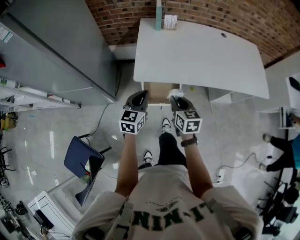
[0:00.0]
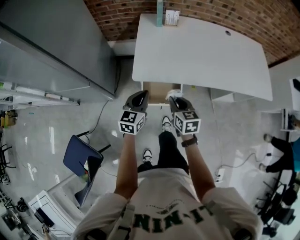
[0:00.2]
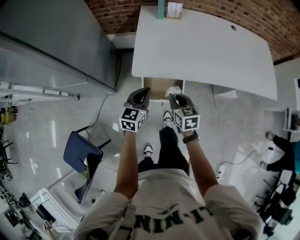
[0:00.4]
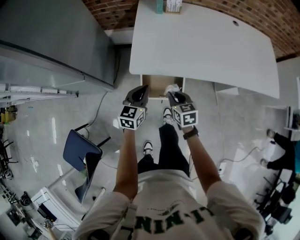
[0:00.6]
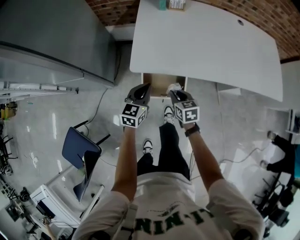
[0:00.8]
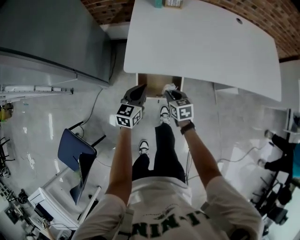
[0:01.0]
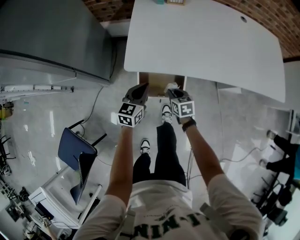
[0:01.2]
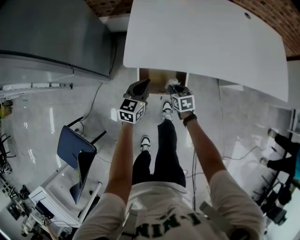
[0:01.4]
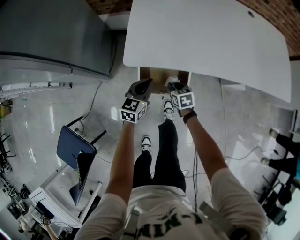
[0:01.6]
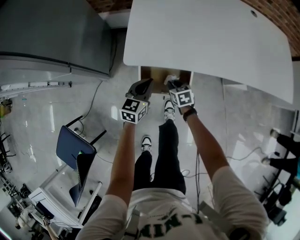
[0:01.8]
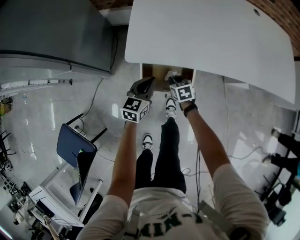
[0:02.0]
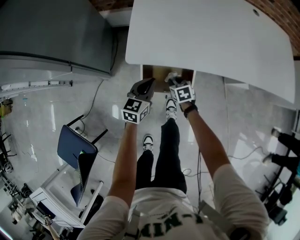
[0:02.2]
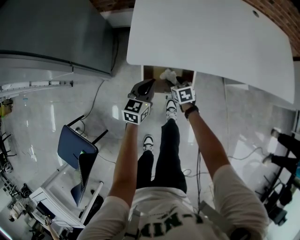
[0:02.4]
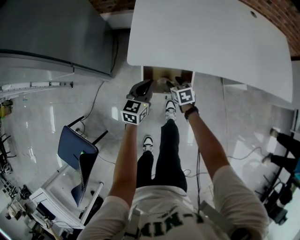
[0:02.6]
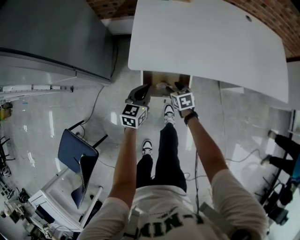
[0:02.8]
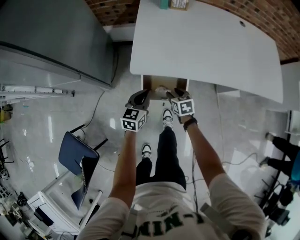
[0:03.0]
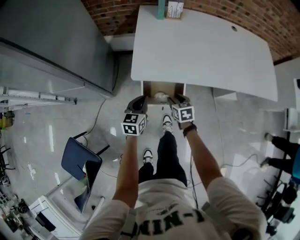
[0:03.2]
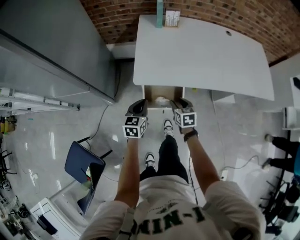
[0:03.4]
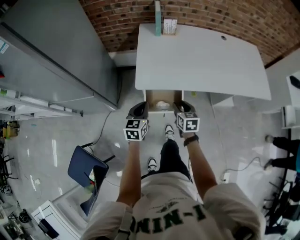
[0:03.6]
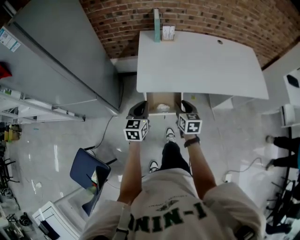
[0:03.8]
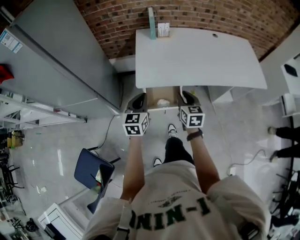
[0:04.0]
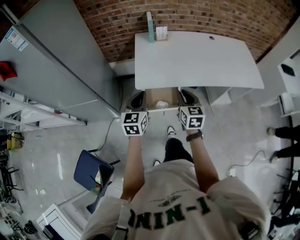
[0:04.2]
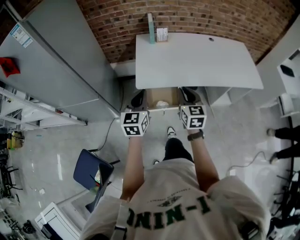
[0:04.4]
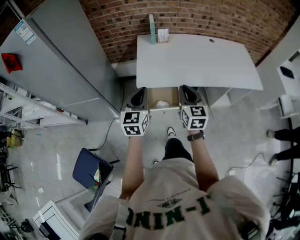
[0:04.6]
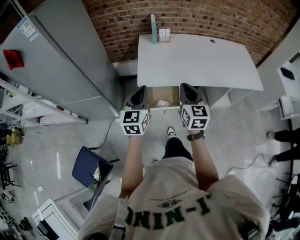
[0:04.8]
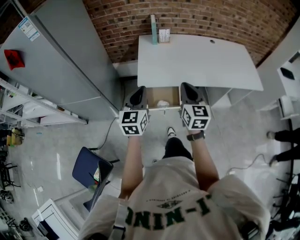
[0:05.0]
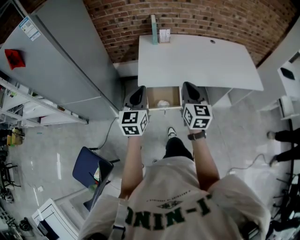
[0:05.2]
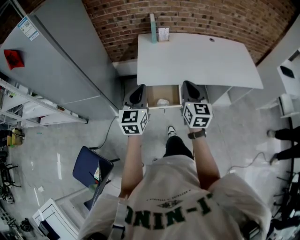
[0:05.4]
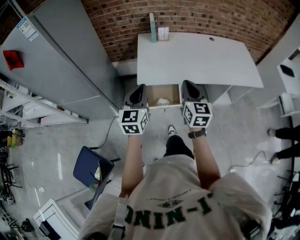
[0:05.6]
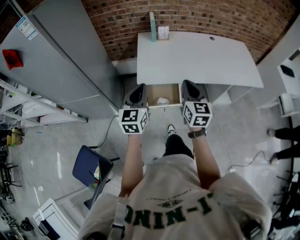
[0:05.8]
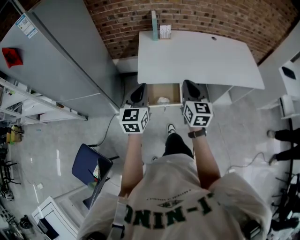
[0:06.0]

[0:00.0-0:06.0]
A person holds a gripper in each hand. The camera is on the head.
0:00.0 to 0:01.6: The two grippers go roughly 25 cm downward. The right gripper turns by about 30 degrees.
0:01.6 to 0:03.0: The right gripper moves upward, some 5 cm, and opens.
0:03.0 to 0:04.4: The grippers both shift upward by approximately 30 cm. The right gripper points its fingers approximately 40 degrees further upward, and closes.
0:04.4 to 0:06.0: The right gripper shifts approximately 5 cm upward.

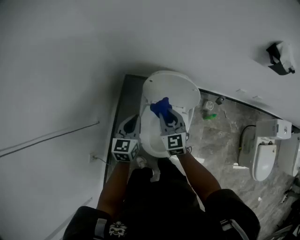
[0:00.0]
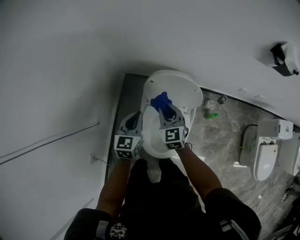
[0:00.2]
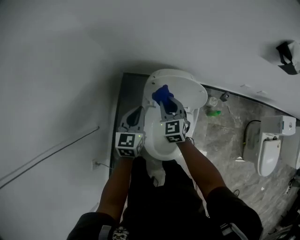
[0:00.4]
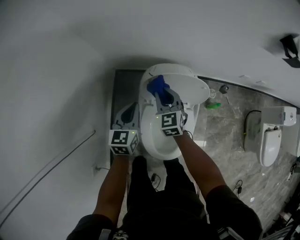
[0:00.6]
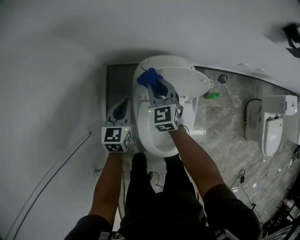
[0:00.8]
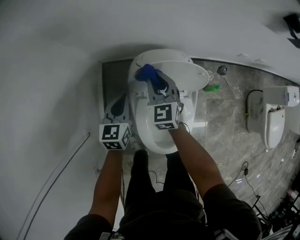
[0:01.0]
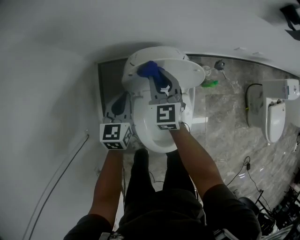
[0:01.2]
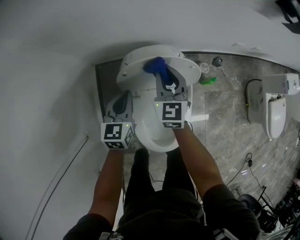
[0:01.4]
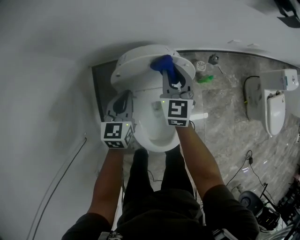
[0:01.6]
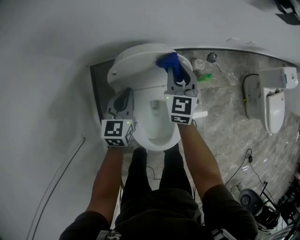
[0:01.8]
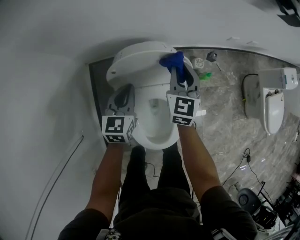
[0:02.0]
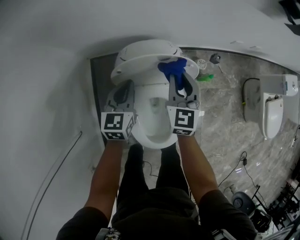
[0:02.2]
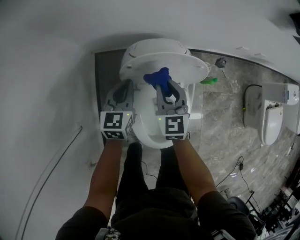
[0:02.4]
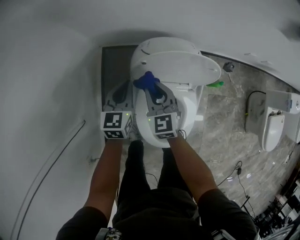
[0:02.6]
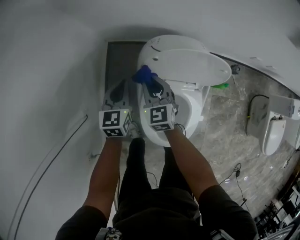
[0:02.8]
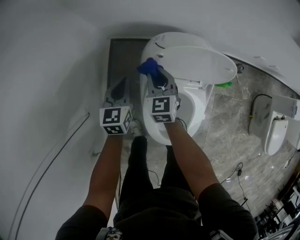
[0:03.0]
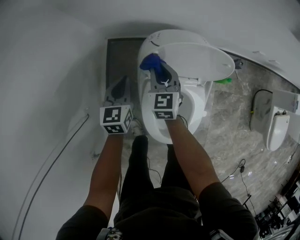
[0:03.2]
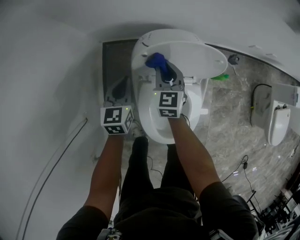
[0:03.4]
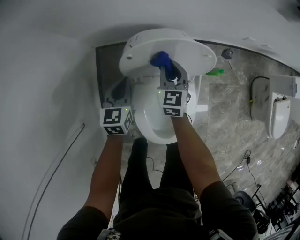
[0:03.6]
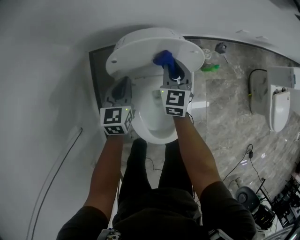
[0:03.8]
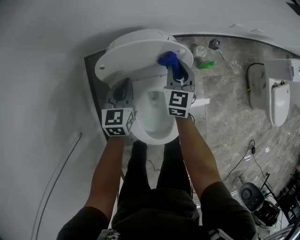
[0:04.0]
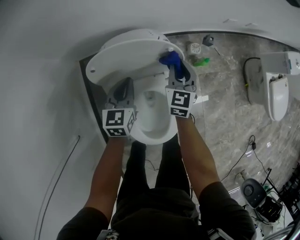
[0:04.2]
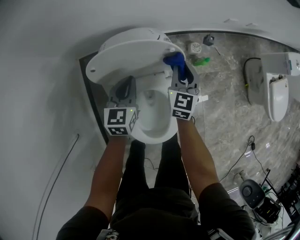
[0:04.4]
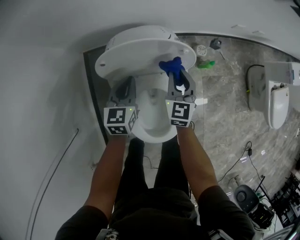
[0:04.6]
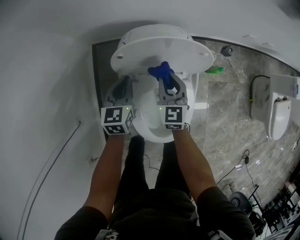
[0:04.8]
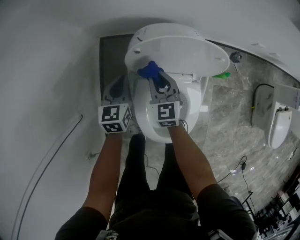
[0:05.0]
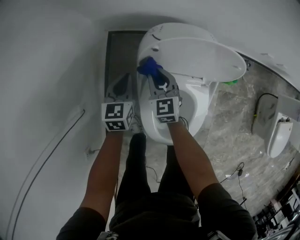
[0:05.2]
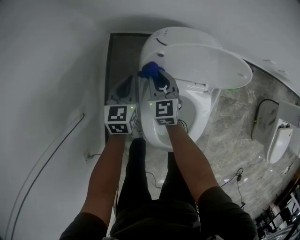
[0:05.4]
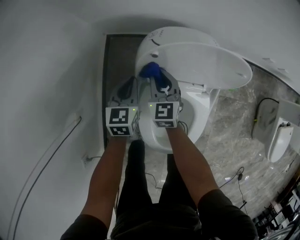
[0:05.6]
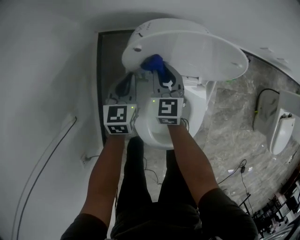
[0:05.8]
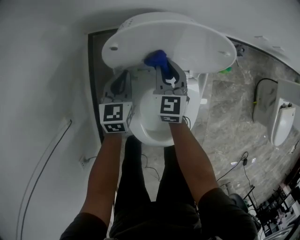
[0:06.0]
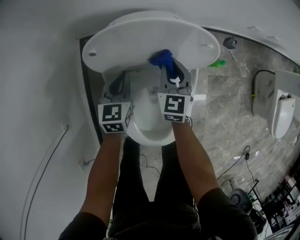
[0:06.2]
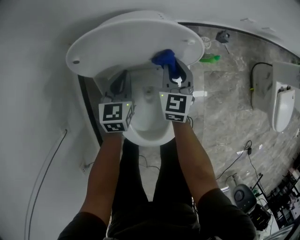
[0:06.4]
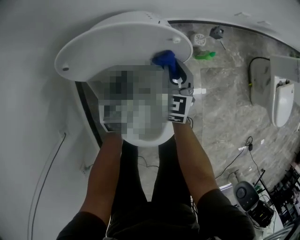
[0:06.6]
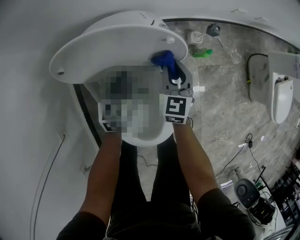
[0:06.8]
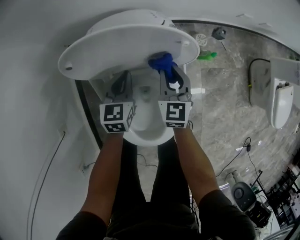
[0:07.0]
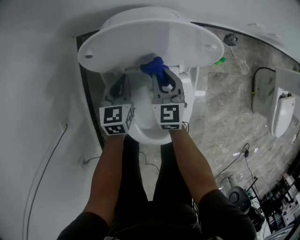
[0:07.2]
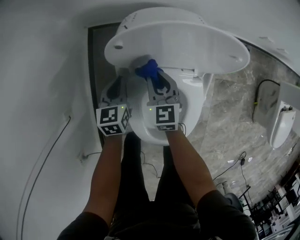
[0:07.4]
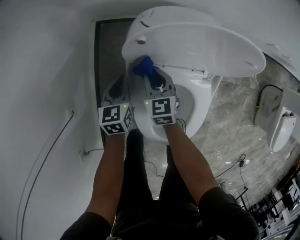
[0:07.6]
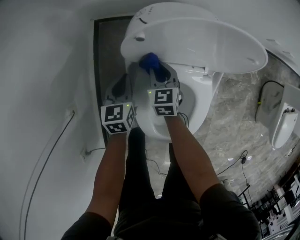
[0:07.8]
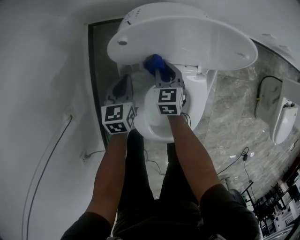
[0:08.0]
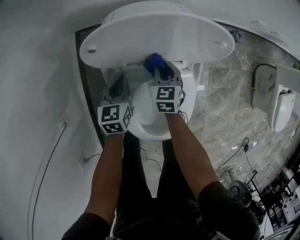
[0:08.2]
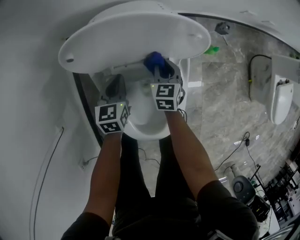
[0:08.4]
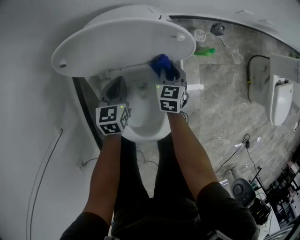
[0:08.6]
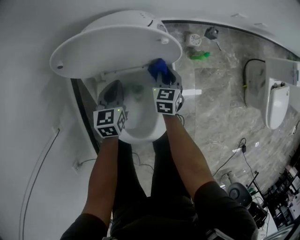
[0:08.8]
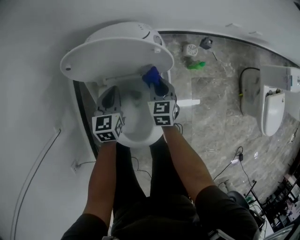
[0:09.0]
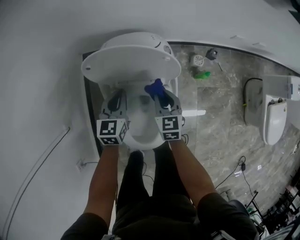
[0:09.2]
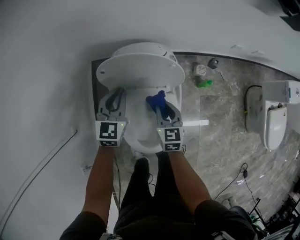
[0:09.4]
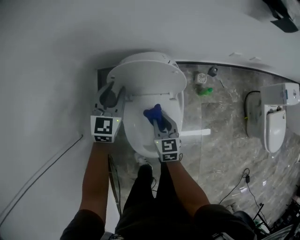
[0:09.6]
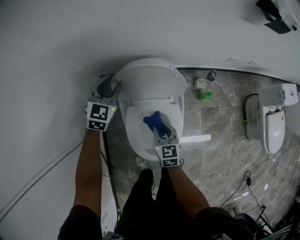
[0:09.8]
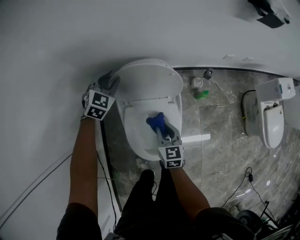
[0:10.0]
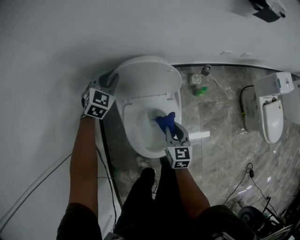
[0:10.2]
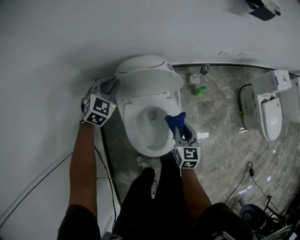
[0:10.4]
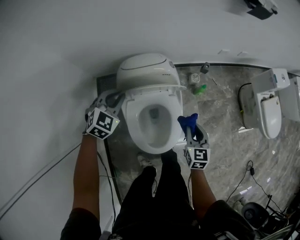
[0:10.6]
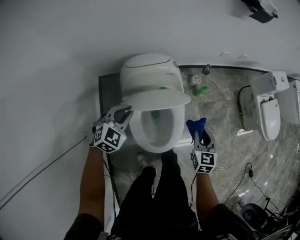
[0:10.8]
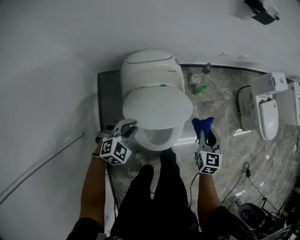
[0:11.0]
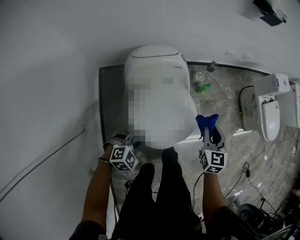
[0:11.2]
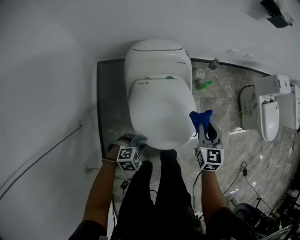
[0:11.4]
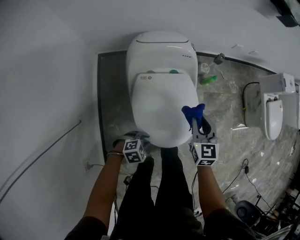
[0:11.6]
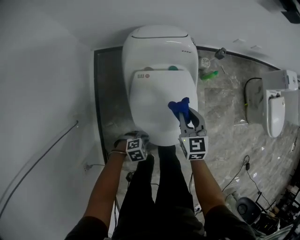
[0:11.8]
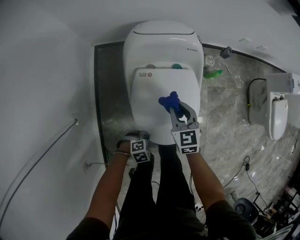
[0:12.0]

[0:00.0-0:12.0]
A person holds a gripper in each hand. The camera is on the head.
0:00.0 to 0:01.6: The right gripper is displaced forward, to the right and downward by some 20 cm, and turns by some 30 degrees. Meanwhile the left gripper shifts about 20 cm forward and downward.
0:01.6 to 0:03.0: Both grippers travel together to the left and downward, roughly 20 cm. The right gripper rotates about 20 degrees.
0:03.0 to 0:04.4: The left gripper shifts by approximately 20 cm. Meanwhile the right gripper shifts by approximately 30 cm, and turns by roughly 30 degrees.
0:04.4 to 0:06.0: The right gripper swivels about 20 degrees. Meanwhile the left gripper ends up approximately 15 cm from where it was.
0:06.0 to 0:07.6: The right gripper moves approximately 15 cm, while the left gripper moves roughly 10 cm.
0:07.6 to 0:09.0: The two grippers go about 20 cm to the right.
0:09.0 to 0:10.4: The left gripper shifts about 20 cm upward, twists some 50 degrees clockwise, seen from behind, and opens, then closes once more; the right gripper heads upward and backward, covering roughly 20 cm.
0:10.4 to 0:12.0: The right gripper moves roughly 15 cm, and swivels roughly 20 degrees. The left gripper shifts by approximately 50 cm, and changes its angle by roughly 50 degrees.

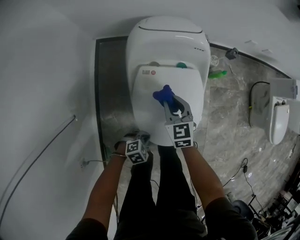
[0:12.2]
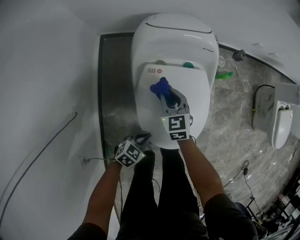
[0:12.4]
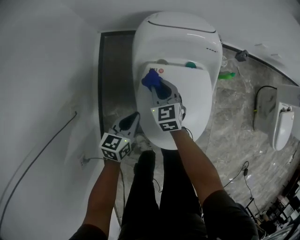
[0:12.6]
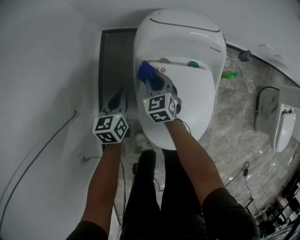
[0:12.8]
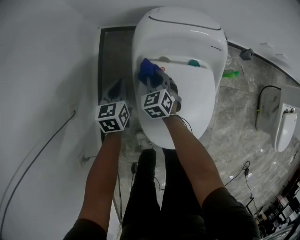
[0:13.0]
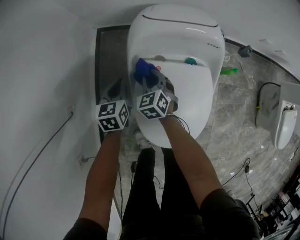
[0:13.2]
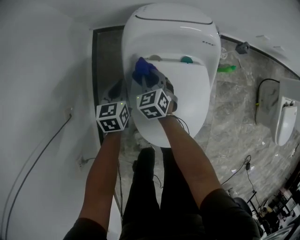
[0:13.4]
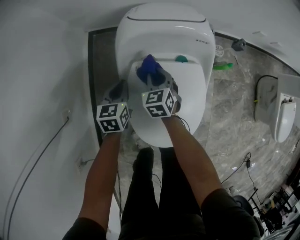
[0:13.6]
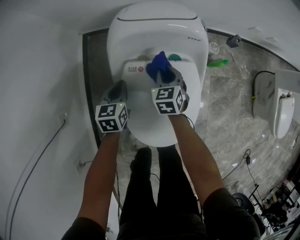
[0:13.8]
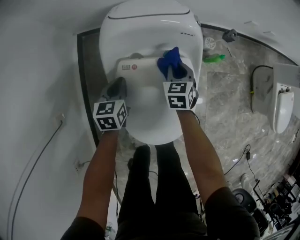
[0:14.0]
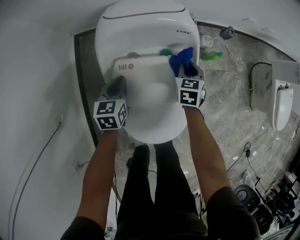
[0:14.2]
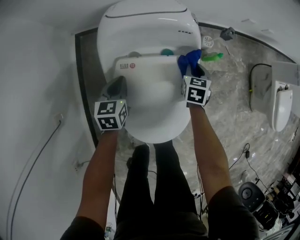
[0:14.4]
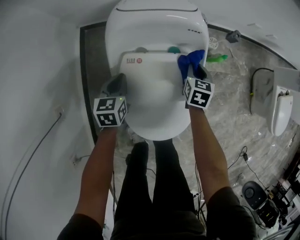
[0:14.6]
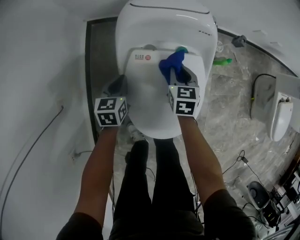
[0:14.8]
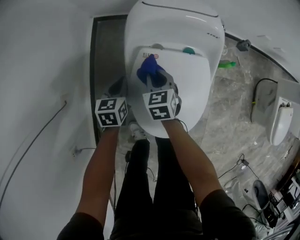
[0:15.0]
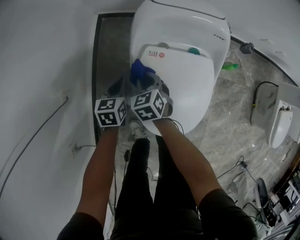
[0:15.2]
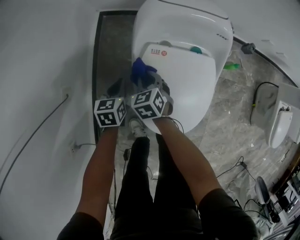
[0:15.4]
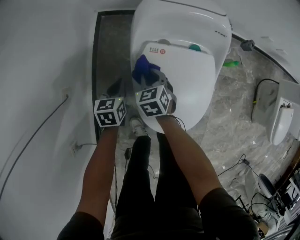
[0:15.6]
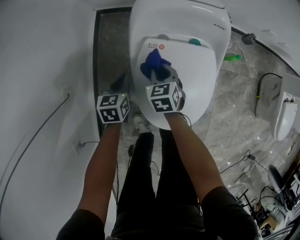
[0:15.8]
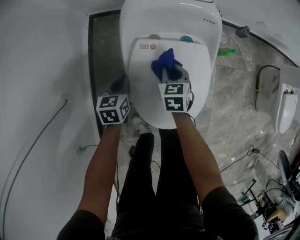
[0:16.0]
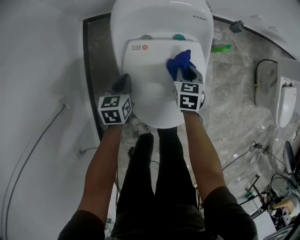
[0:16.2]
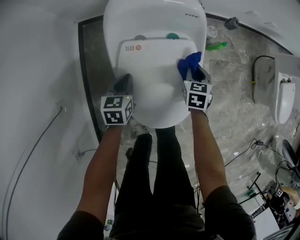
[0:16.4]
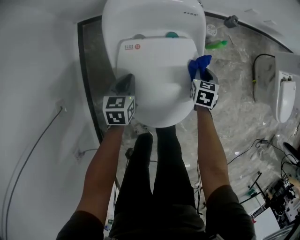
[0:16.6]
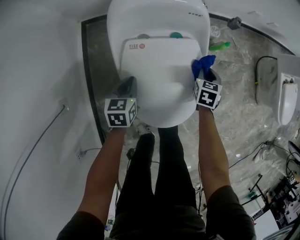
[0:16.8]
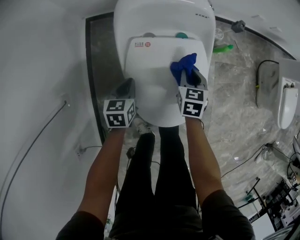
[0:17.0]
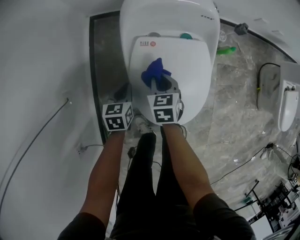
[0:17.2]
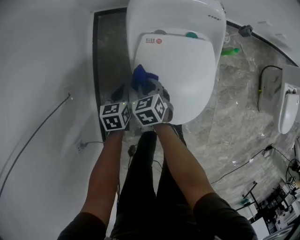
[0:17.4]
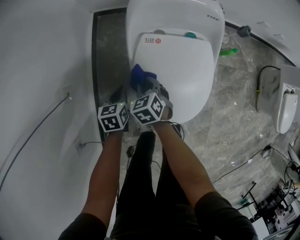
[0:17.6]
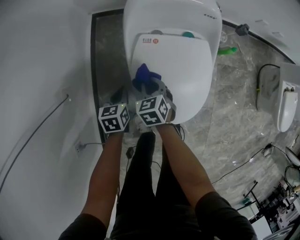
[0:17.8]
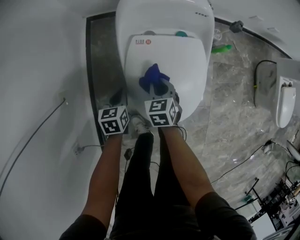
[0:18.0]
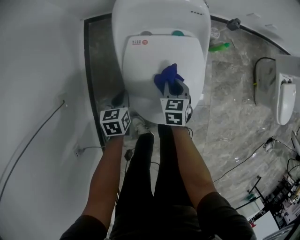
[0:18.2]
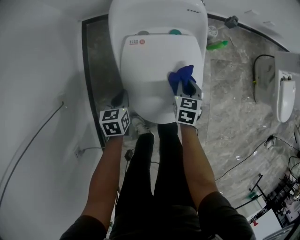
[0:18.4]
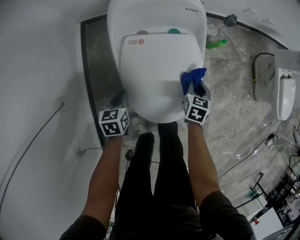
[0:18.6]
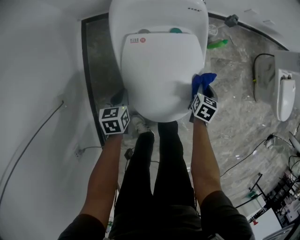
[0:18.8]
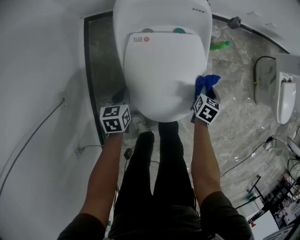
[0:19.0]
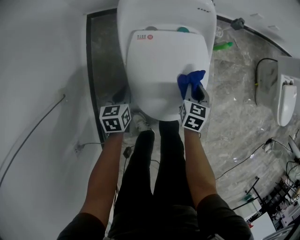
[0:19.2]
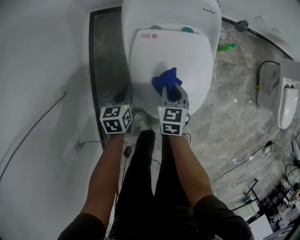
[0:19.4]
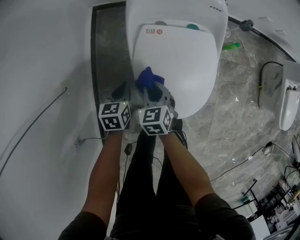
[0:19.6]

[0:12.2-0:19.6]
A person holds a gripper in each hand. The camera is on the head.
0:12.2 to 0:13.6: The left gripper changes place by roughly 30 cm, and rotates roughly 70 degrees; the right gripper goes roughly 10 cm downward.
0:13.6 to 0:15.2: The left gripper ends up roughly 10 cm from where it was.
0:15.2 to 0:16.6: The right gripper moves roughly 35 cm, and changes its angle by approximately 40 degrees. The left gripper changes place by roughly 10 cm.
0:16.6 to 0:18.2: The left gripper moves some 10 cm.
0:18.2 to 0:19.6: The right gripper shifts by roughly 15 cm.
